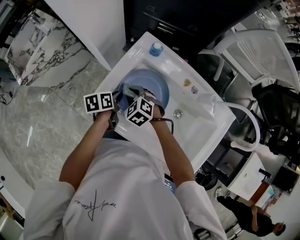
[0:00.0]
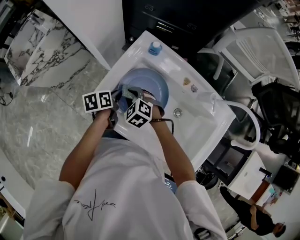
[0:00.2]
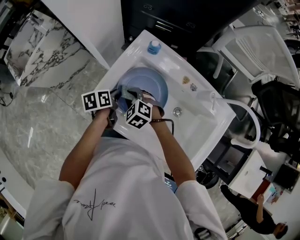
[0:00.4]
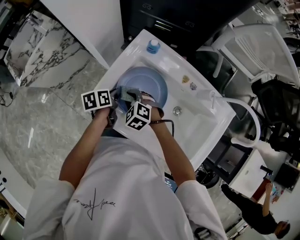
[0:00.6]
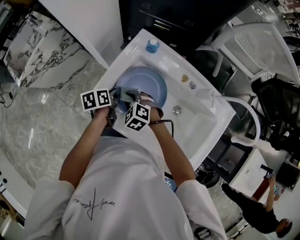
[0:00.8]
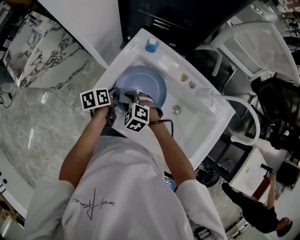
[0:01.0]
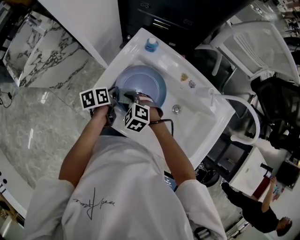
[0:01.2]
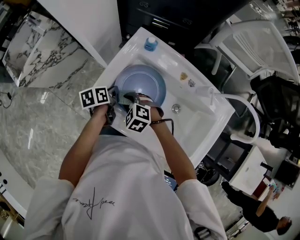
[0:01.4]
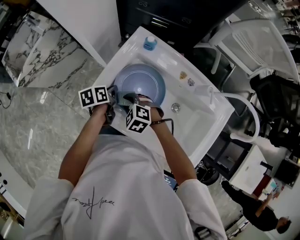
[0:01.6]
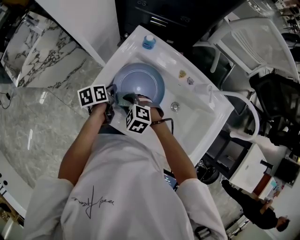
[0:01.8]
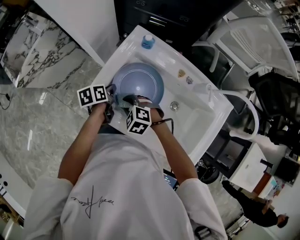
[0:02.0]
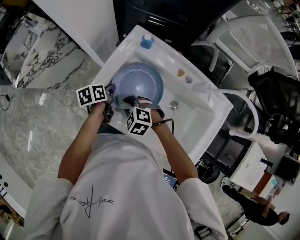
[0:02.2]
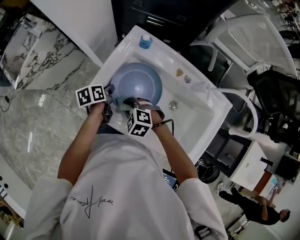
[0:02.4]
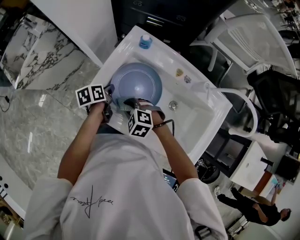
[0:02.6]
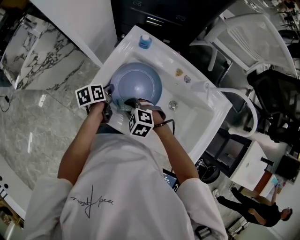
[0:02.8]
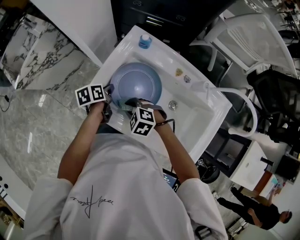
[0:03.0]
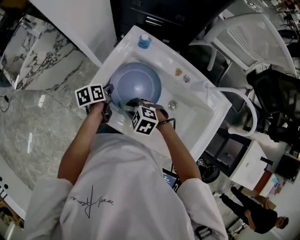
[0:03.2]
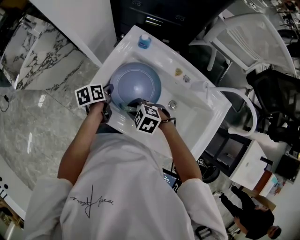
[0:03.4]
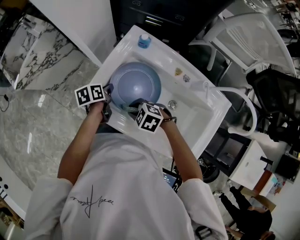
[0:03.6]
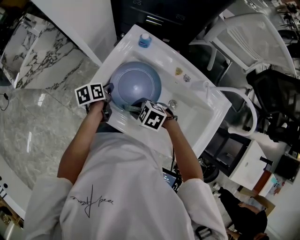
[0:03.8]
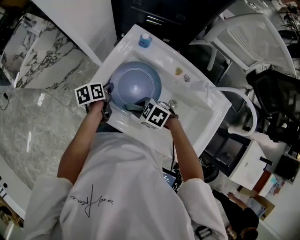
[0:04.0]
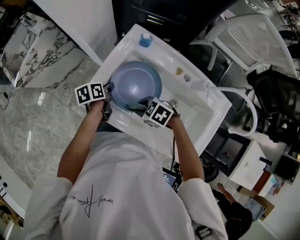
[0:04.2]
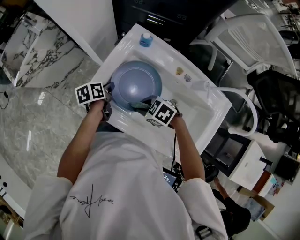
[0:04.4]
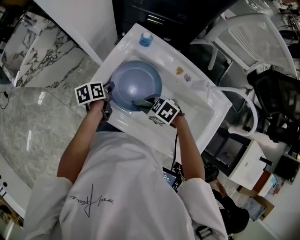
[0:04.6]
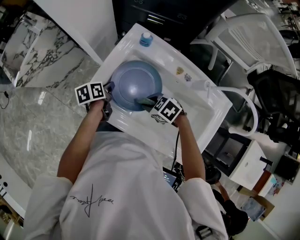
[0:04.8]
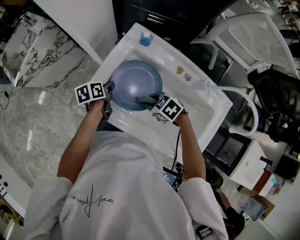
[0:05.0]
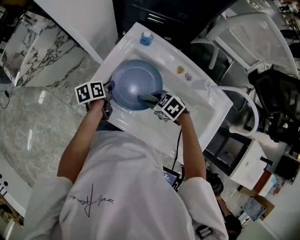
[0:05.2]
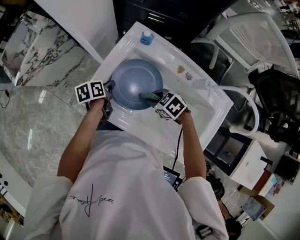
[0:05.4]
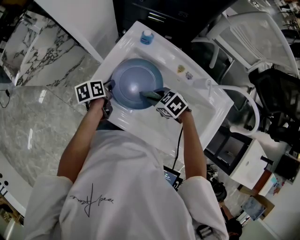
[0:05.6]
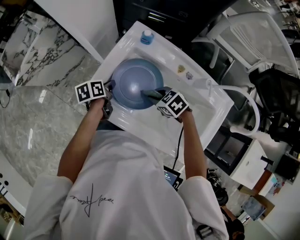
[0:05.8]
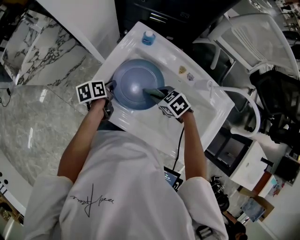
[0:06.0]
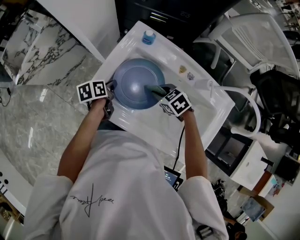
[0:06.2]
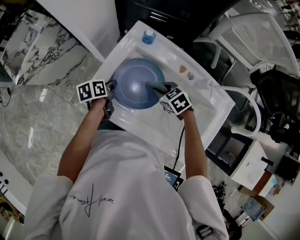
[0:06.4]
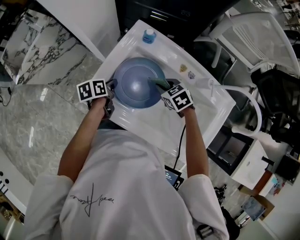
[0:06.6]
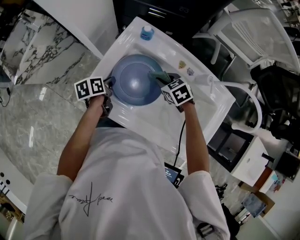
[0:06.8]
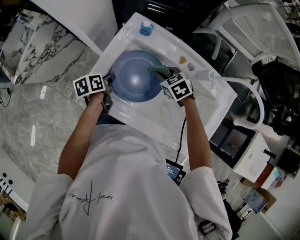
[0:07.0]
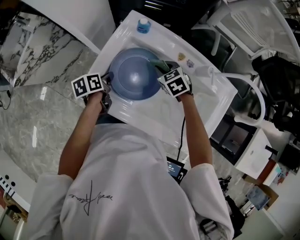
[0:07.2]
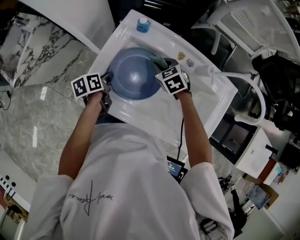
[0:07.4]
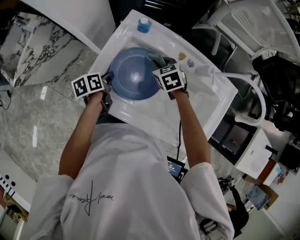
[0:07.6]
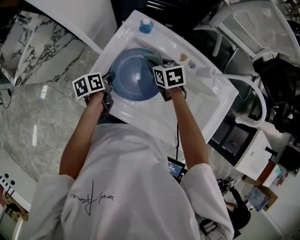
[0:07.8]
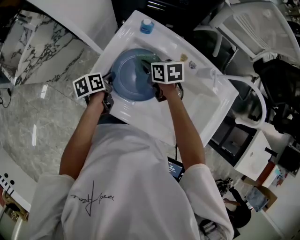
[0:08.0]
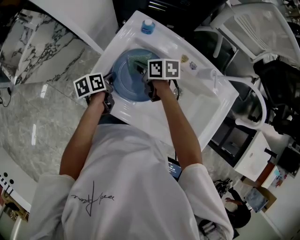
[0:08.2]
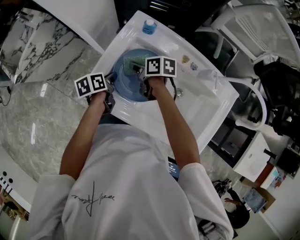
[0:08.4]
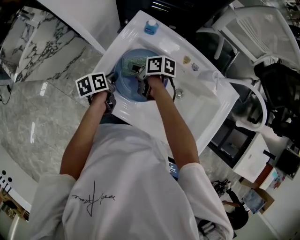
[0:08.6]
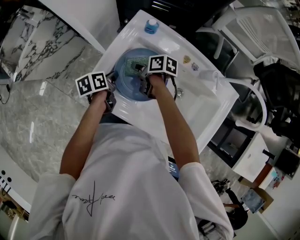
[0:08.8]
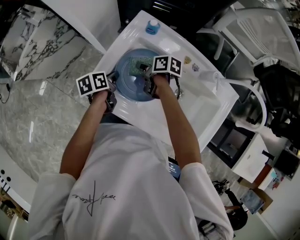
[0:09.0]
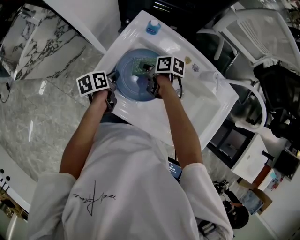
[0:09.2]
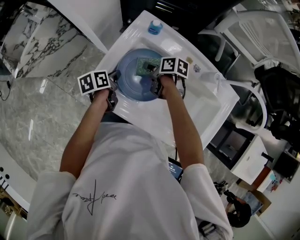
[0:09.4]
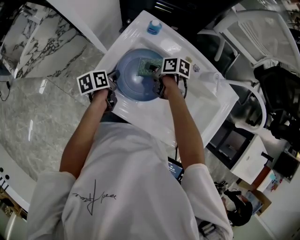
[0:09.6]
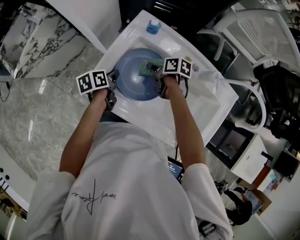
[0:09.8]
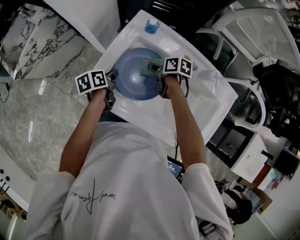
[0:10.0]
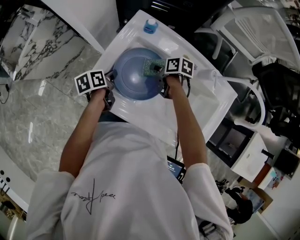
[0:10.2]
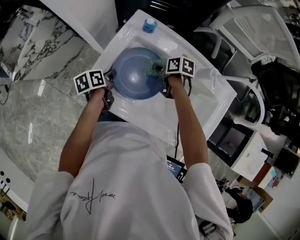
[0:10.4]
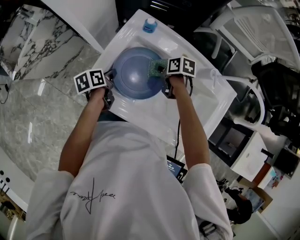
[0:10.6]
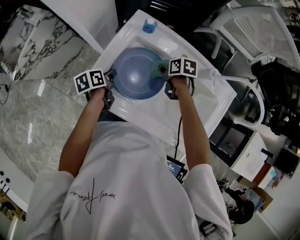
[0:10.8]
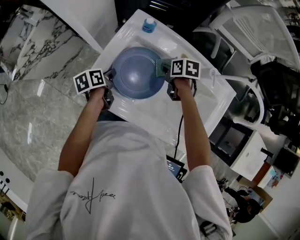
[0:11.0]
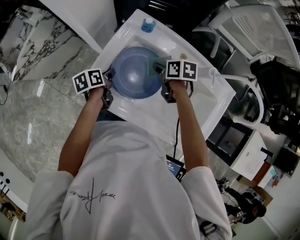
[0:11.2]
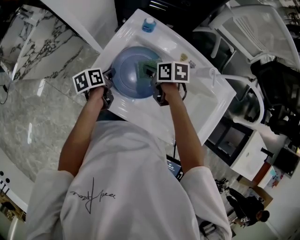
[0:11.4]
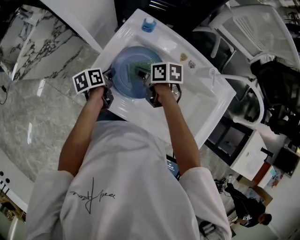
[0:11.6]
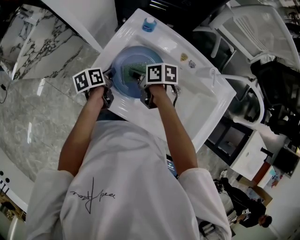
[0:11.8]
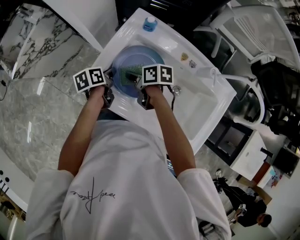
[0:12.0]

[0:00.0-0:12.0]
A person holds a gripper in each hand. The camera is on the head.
0:00.0 to 0:01.6: The right gripper is displaced backward by roughly 5 cm.
0:01.6 to 0:03.0: The grippers stay close to where they were, moving slightly.
0:03.0 to 0:04.4: The right gripper shifts by approximately 5 cm, and changes its angle by roughly 20 degrees.
0:04.4 to 0:06.0: The right gripper changes place by roughly 10 cm.
0:06.0 to 0:07.6: The right gripper travels forward by roughly 10 cm, and turns by roughly 30 degrees.
0:07.6 to 0:09.0: The right gripper travels to the left by some 10 cm, and twists about 60 degrees clockwise, seen from behind.
0:09.0 to 0:10.4: The right gripper is displaced to the right by some 10 cm.
0:10.4 to 0:12.0: The right gripper heads to the left, covering roughly 15 cm.

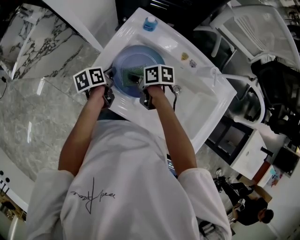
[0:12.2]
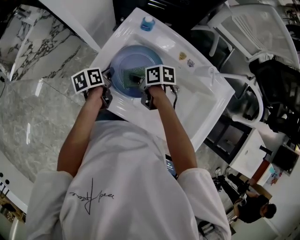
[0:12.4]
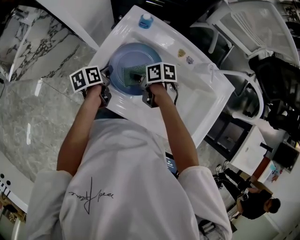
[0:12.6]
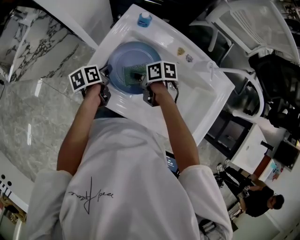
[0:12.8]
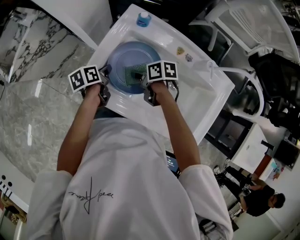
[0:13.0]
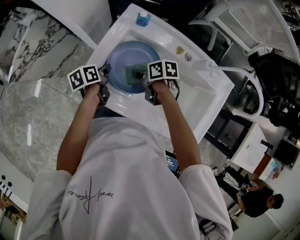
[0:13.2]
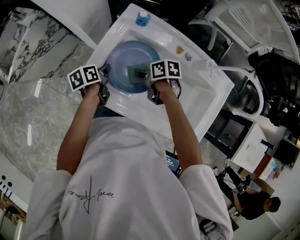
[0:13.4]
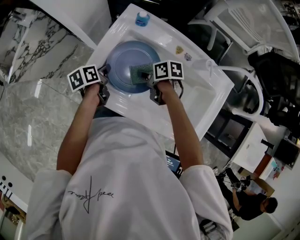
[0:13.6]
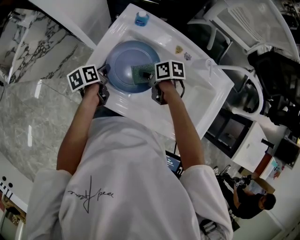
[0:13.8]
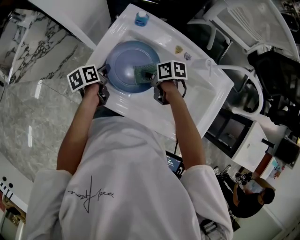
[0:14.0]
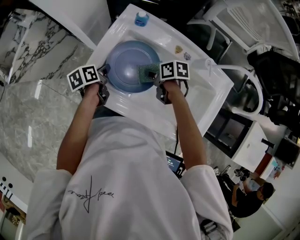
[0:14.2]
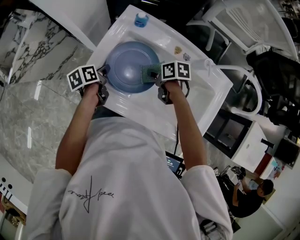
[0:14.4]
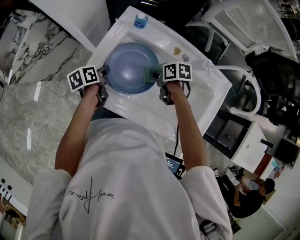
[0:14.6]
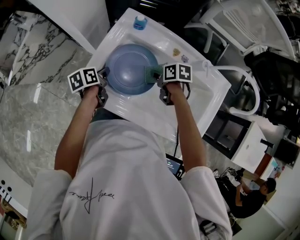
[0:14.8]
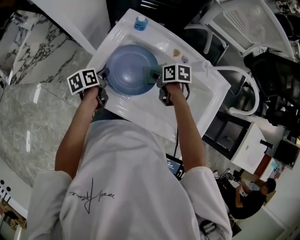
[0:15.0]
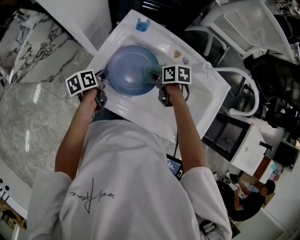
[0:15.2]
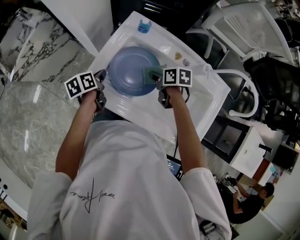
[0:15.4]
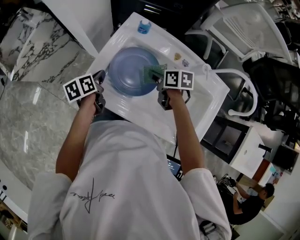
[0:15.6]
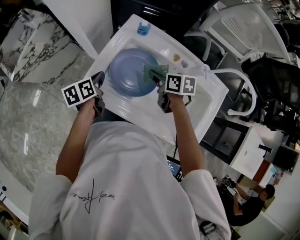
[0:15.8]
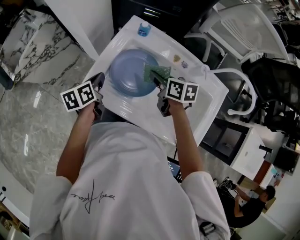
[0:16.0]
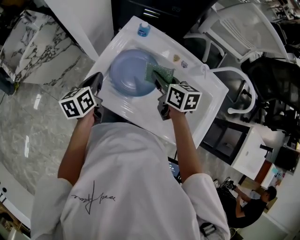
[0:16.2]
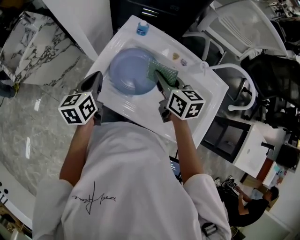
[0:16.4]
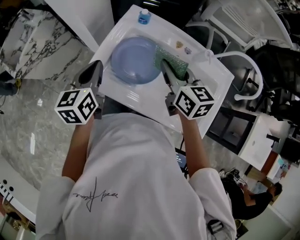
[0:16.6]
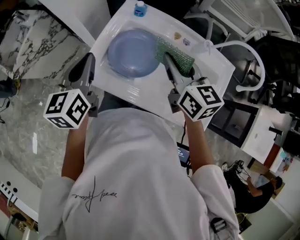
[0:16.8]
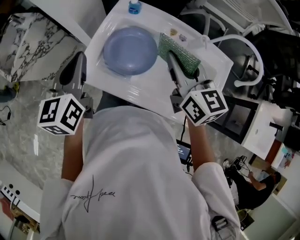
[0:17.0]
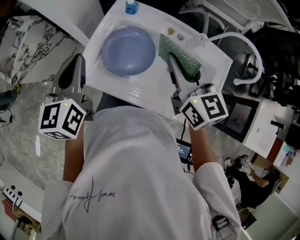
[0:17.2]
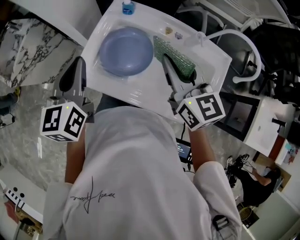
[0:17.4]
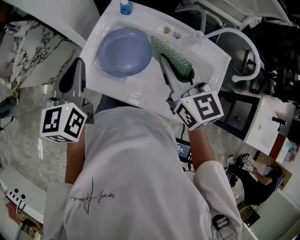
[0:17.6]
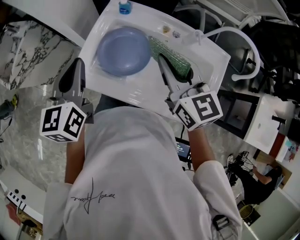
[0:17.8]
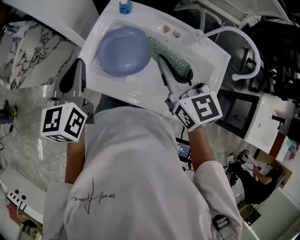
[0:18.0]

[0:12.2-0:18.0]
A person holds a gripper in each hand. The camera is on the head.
0:12.2 to 0:13.6: The right gripper shifts some 5 cm to the right.
0:13.6 to 0:15.0: The right gripper moves to the right, some 5 cm.
0:15.0 to 0:16.6: Both grippers travel together upward, approximately 20 cm. The left gripper rotates about 40 degrees. The right gripper points its fingers roughly 30 degrees further upward.
0:16.6 to 0:18.0: The right gripper moves upward and backward, approximately 10 cm; the left gripper travels upward by approximately 5 cm.

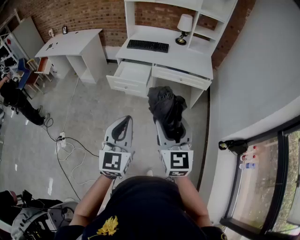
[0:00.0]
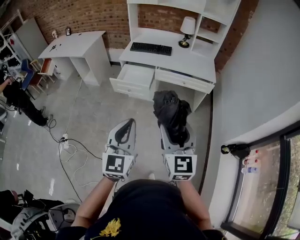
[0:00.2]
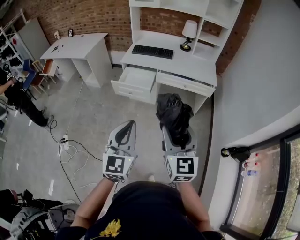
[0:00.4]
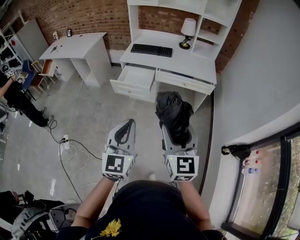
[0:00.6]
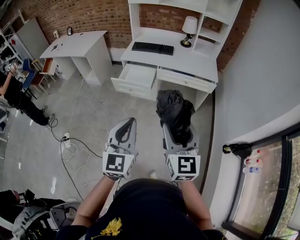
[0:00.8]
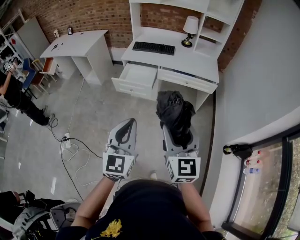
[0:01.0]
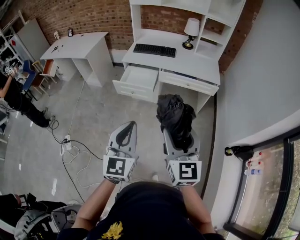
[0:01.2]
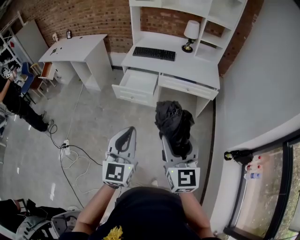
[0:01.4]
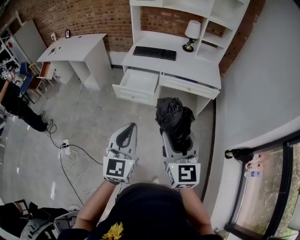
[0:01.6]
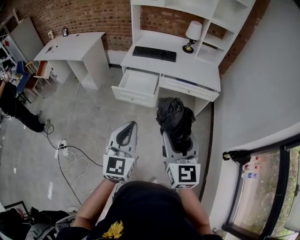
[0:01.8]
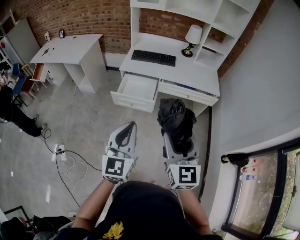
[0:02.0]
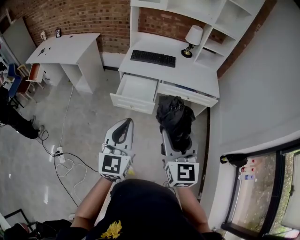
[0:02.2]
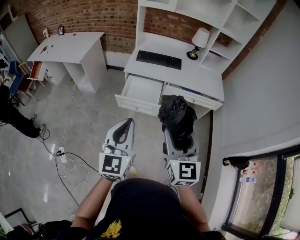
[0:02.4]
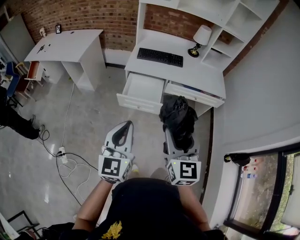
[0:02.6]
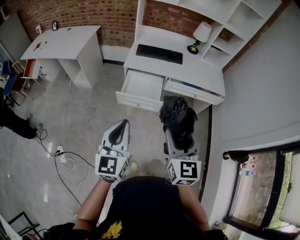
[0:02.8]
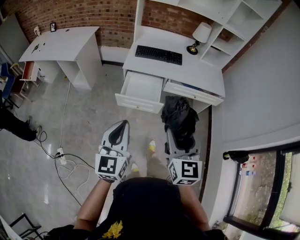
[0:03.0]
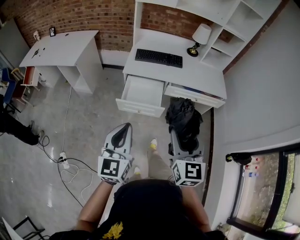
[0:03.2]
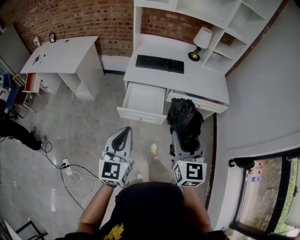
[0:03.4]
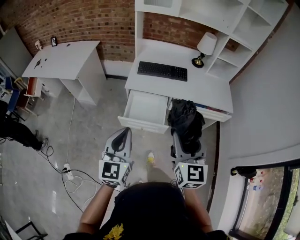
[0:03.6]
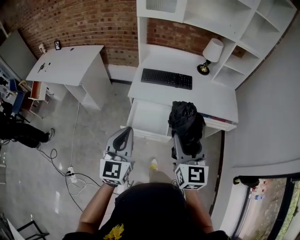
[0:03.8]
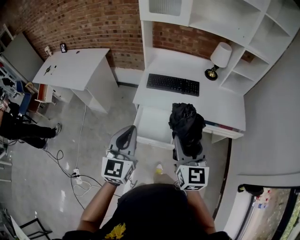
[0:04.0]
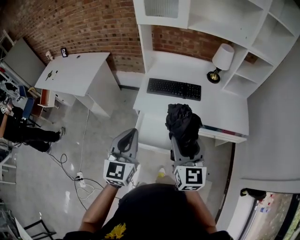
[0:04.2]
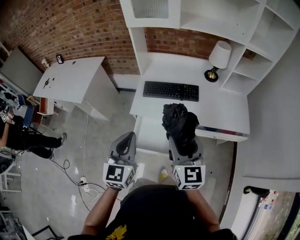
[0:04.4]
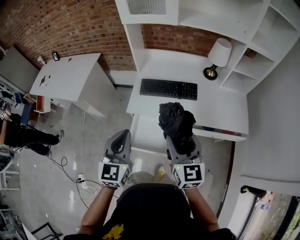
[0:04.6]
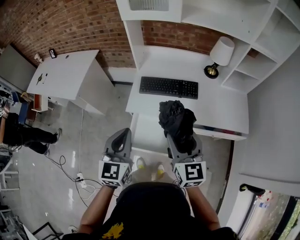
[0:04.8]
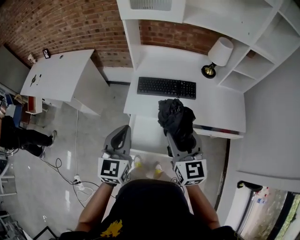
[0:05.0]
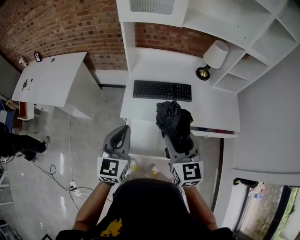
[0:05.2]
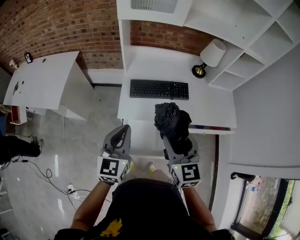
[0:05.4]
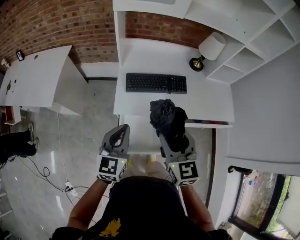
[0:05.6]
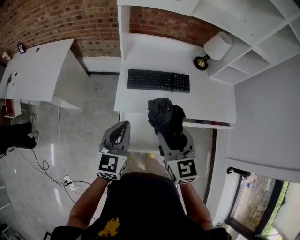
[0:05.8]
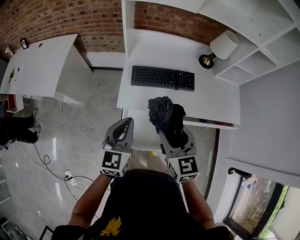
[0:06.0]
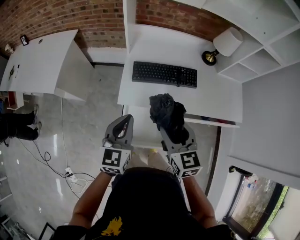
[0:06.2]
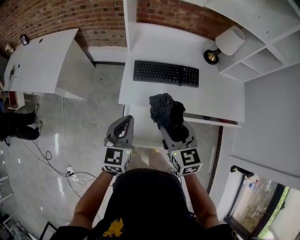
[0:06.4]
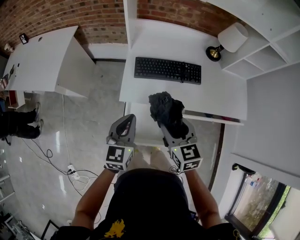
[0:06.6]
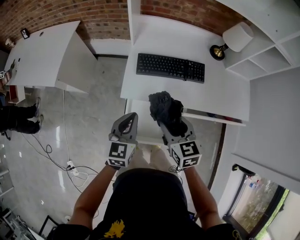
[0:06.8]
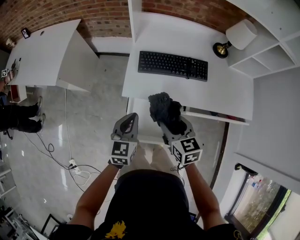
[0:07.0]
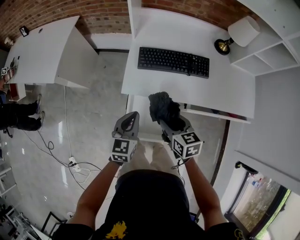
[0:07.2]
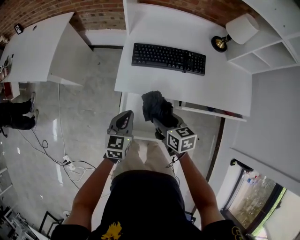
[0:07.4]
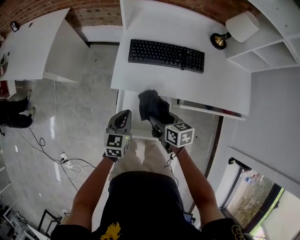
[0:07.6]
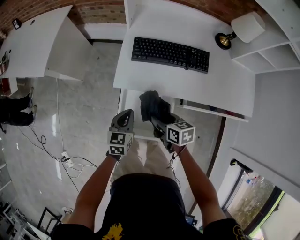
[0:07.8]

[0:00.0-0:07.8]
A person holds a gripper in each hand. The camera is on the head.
0:00.0 to 0:01.6: The right gripper shifts by some 5 cm. The left gripper is displaced forward by roughly 5 cm.
0:01.6 to 0:03.2: The left gripper is displaced to the left and forward by some 30 cm. The right gripper shifts about 25 cm forward and to the left.
0:03.2 to 0:04.6: The grippers both shift forward by some 35 cm.
0:04.6 to 0:06.2: The left gripper is displaced forward, downward and to the left by approximately 15 cm. Meanwhile the right gripper is displaced to the left, forward and downward by some 15 cm.
0:06.2 to 0:07.8: Both grippers travel together downward, about 25 cm. The right gripper changes its angle by about 40 degrees.
